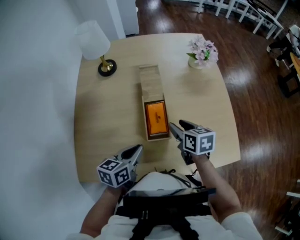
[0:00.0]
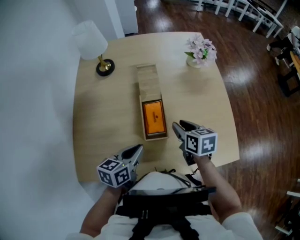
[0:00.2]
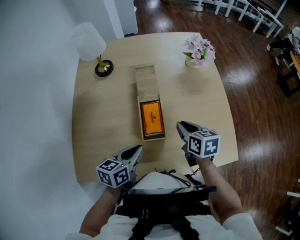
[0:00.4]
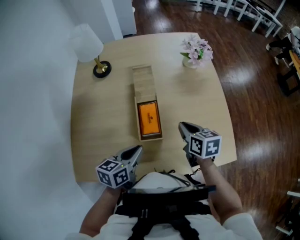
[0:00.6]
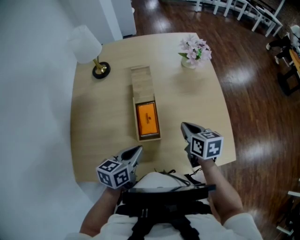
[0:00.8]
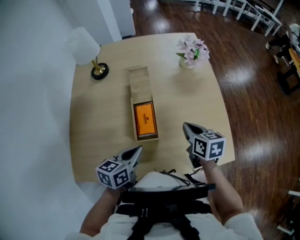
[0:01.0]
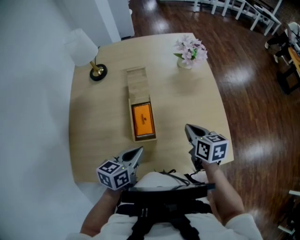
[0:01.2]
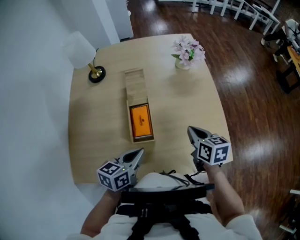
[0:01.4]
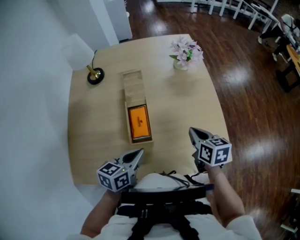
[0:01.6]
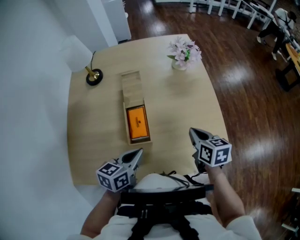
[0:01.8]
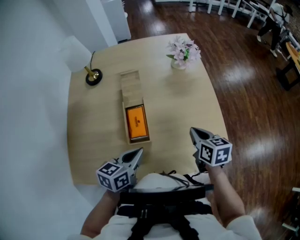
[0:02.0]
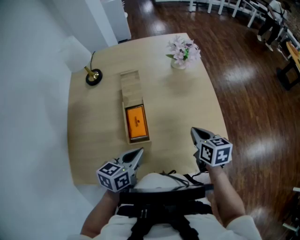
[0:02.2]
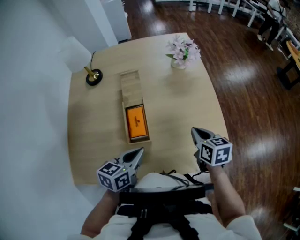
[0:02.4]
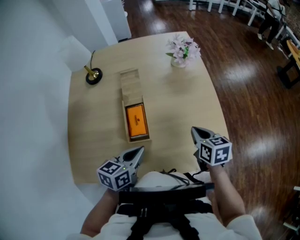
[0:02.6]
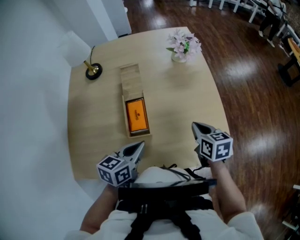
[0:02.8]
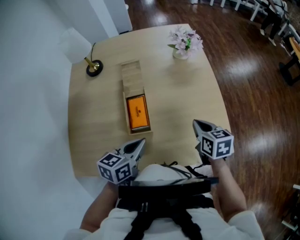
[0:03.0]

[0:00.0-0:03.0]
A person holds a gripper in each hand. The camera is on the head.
0:00.0 to 0:01.6: The left gripper goes about 10 cm to the right. Meanwhile the right gripper moves to the right, about 15 cm, and closes.
0:01.6 to 0:03.0: The grippers make only small movements.

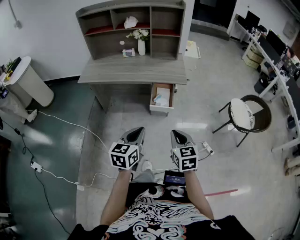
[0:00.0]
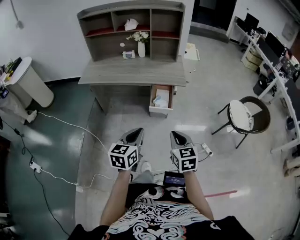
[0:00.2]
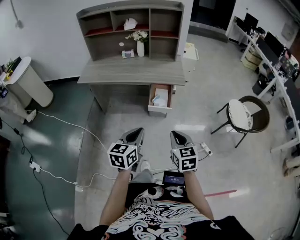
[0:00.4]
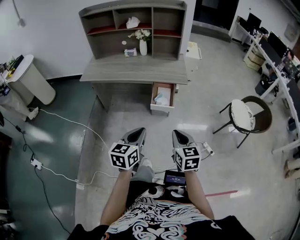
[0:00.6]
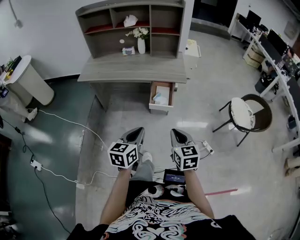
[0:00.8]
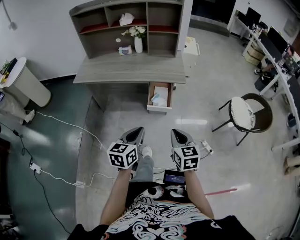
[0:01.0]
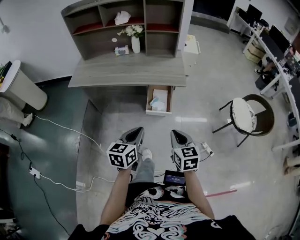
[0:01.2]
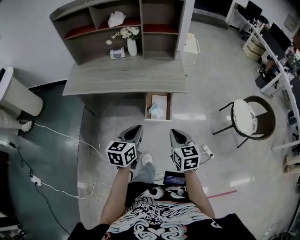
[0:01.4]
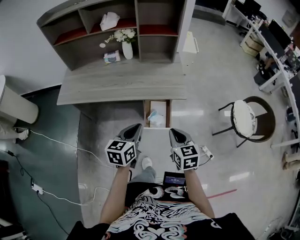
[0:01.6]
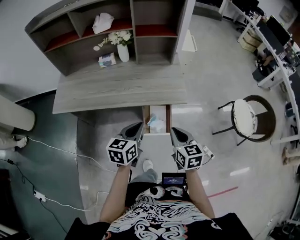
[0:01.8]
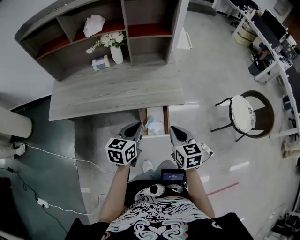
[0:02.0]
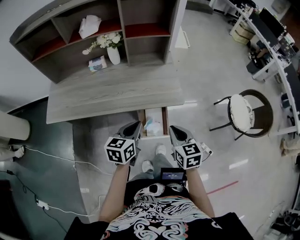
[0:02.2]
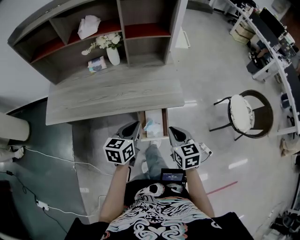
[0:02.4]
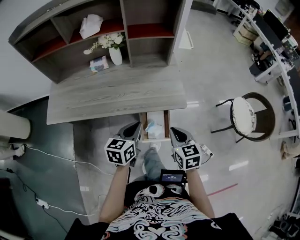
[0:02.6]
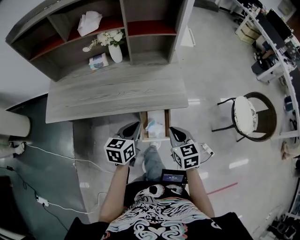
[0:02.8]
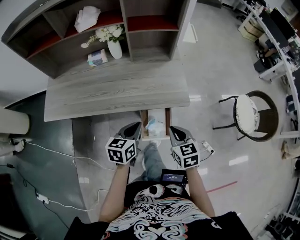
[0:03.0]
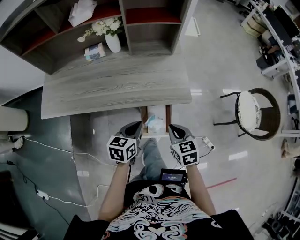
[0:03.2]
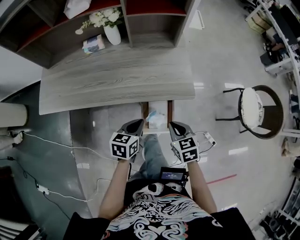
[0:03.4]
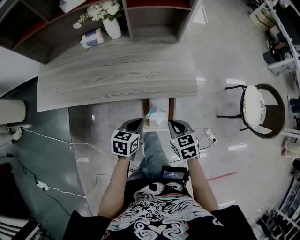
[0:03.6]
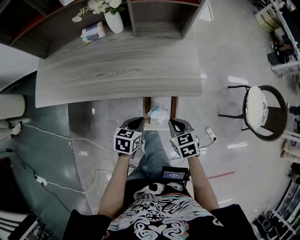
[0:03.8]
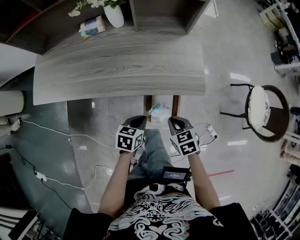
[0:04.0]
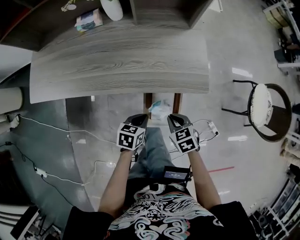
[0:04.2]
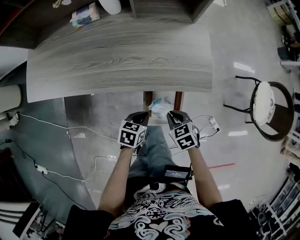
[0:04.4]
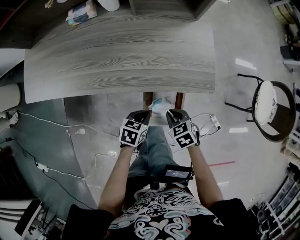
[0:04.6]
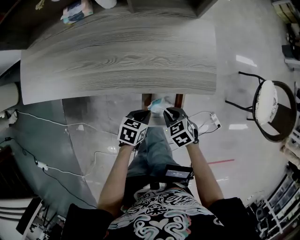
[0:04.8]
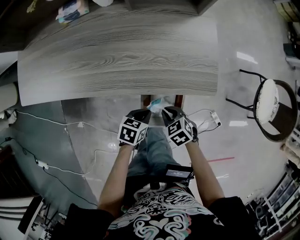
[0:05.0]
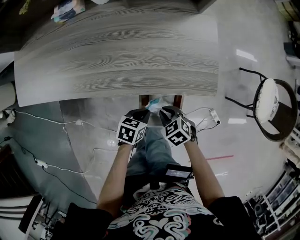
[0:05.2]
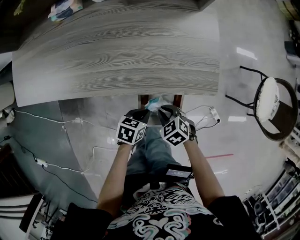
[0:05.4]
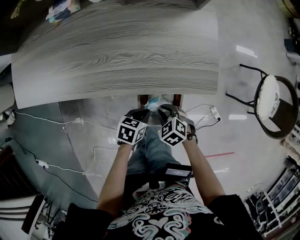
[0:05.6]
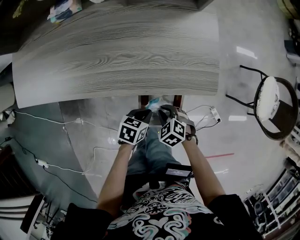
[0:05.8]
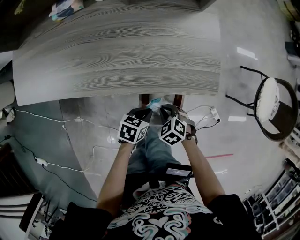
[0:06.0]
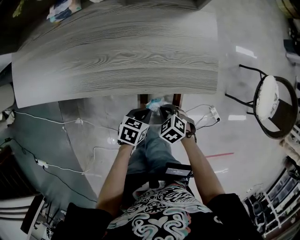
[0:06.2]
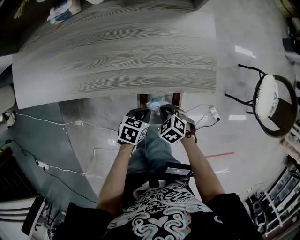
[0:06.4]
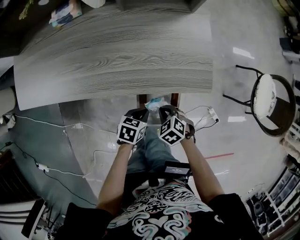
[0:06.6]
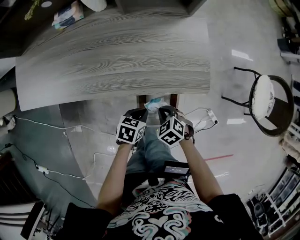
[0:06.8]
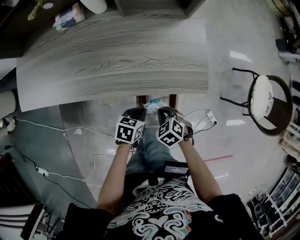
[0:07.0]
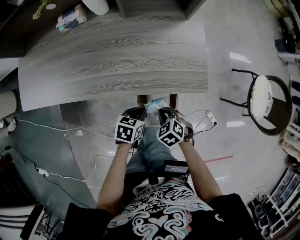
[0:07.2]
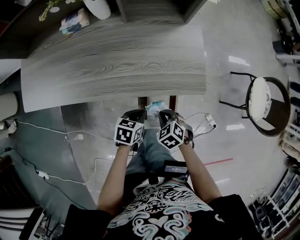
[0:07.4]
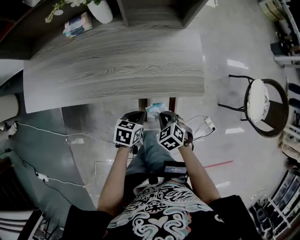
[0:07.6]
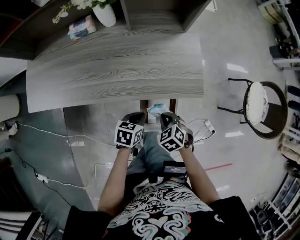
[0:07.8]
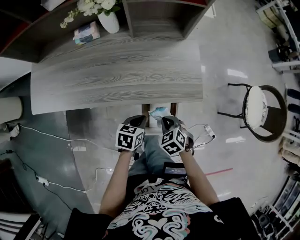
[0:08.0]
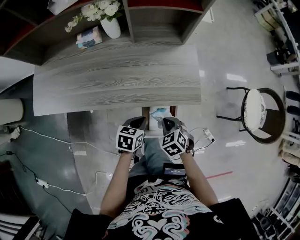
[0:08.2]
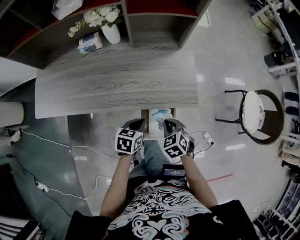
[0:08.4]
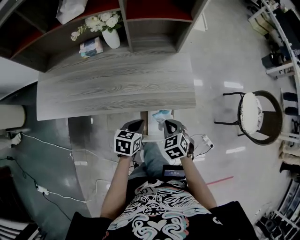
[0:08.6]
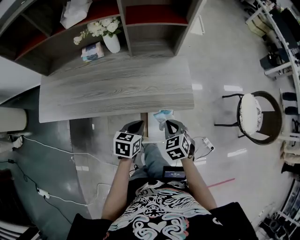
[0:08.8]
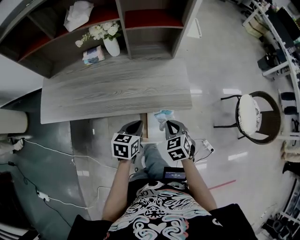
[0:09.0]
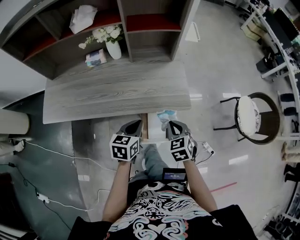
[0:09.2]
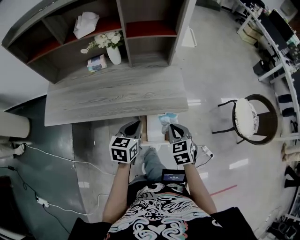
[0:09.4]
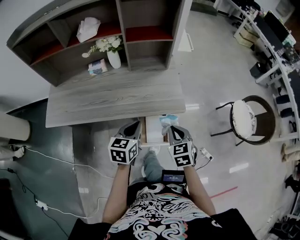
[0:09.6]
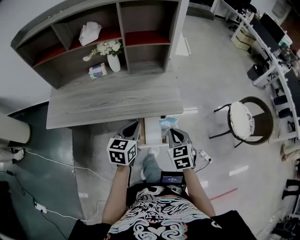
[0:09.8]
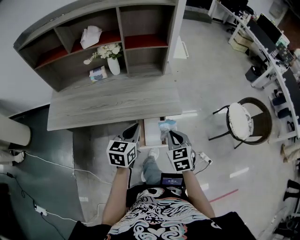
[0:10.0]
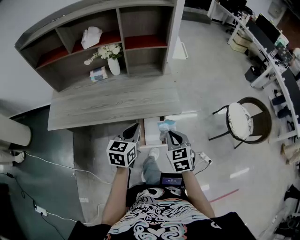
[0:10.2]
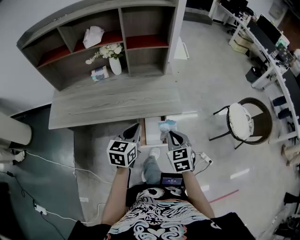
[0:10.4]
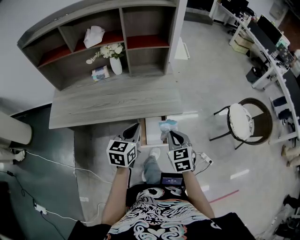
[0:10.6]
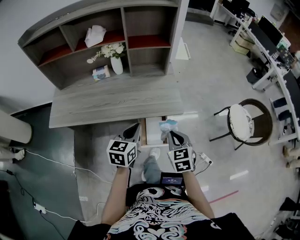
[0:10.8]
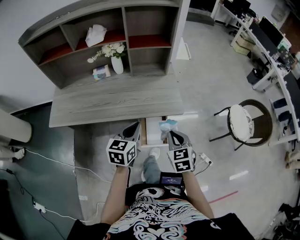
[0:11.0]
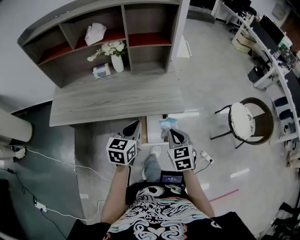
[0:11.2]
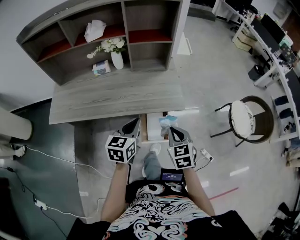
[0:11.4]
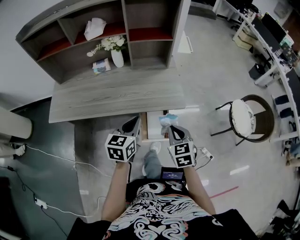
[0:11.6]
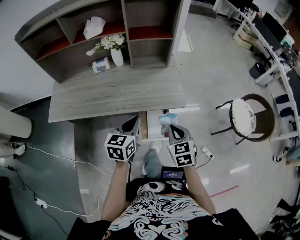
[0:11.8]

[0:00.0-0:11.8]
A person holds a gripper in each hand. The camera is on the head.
0:00.0 to 0:01.4: Both grippers travel together forward, about 20 cm.
0:01.4 to 0:03.0: The grippers both shift forward by about 20 cm.
0:03.0 to 0:04.4: The grippers both shift downward by some 20 cm. The right gripper changes its angle by some 30 degrees; the left gripper swivels roughly 30 degrees.
0:04.4 to 0:06.0: The right gripper heads downward, covering about 10 cm, and rotates roughly 20 degrees, while the left gripper ends up some 5 cm from where it was.
0:06.0 to 0:07.4: The grippers both shift upward by some 5 cm.
0:07.4 to 0:08.8: Both grippers travel together upward, about 15 cm. The right gripper changes its angle by some 20 degrees.
0:08.8 to 0:10.4: The right gripper heads upward and backward, covering about 15 cm, and changes its angle by approximately 20 degrees, while the left gripper heads upward, covering some 15 cm, and changes its angle by approximately 20 degrees.
0:10.4 to 0:11.8: The grippers stay close to where they were, moving slightly.

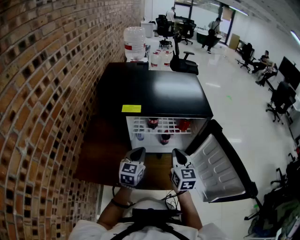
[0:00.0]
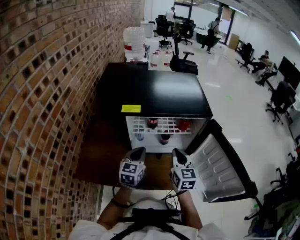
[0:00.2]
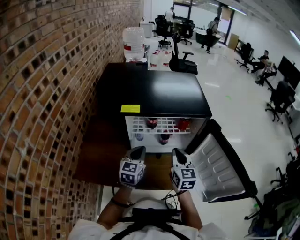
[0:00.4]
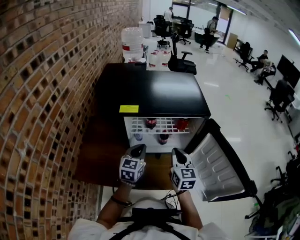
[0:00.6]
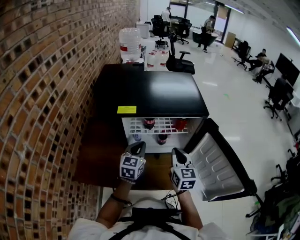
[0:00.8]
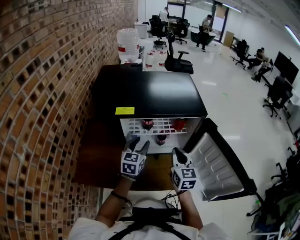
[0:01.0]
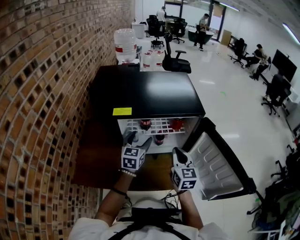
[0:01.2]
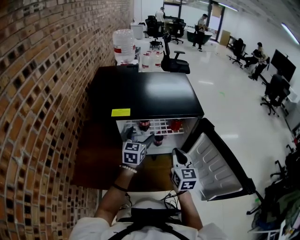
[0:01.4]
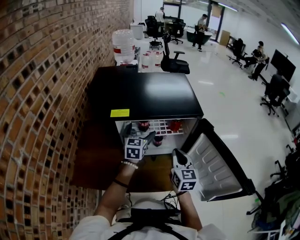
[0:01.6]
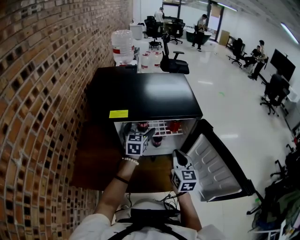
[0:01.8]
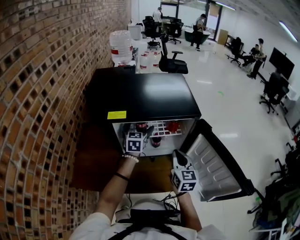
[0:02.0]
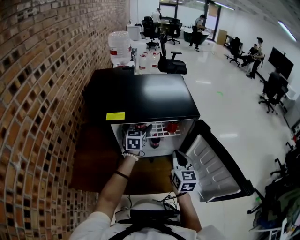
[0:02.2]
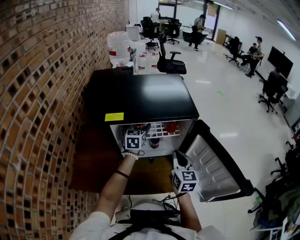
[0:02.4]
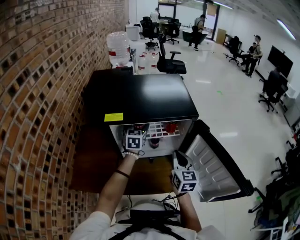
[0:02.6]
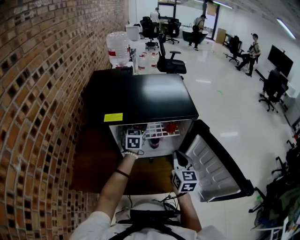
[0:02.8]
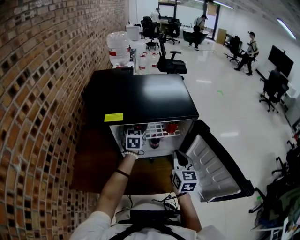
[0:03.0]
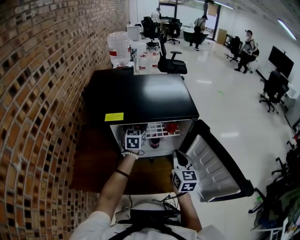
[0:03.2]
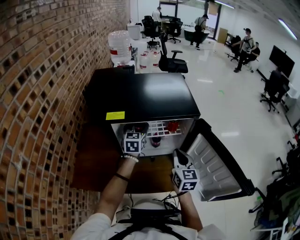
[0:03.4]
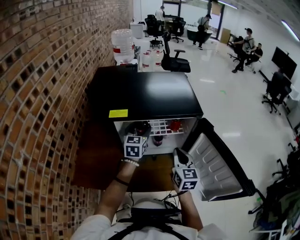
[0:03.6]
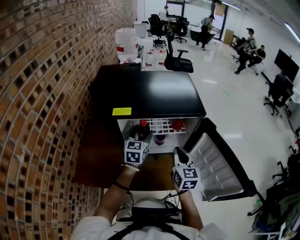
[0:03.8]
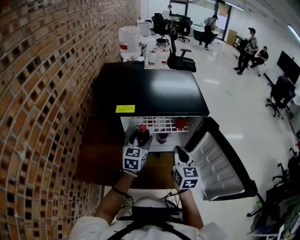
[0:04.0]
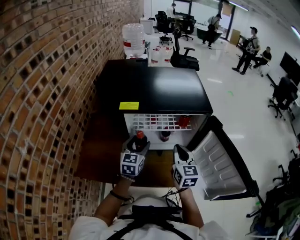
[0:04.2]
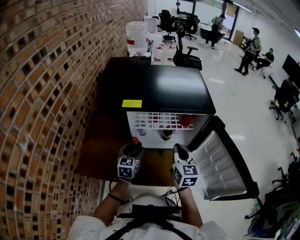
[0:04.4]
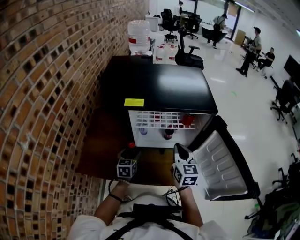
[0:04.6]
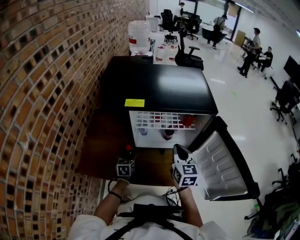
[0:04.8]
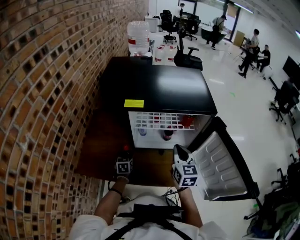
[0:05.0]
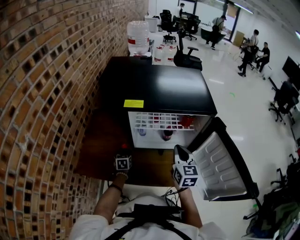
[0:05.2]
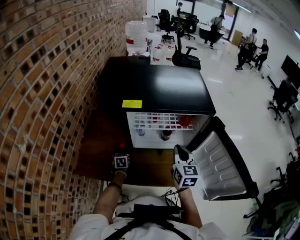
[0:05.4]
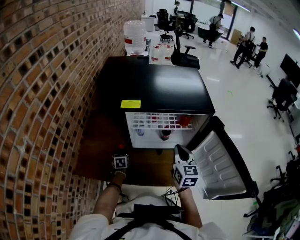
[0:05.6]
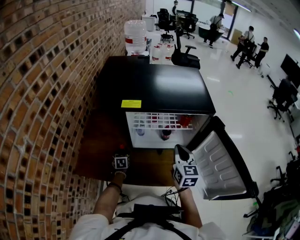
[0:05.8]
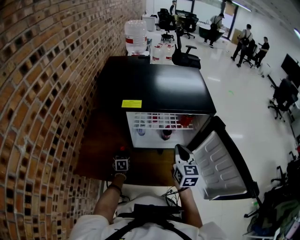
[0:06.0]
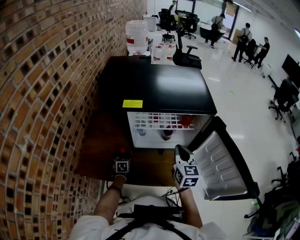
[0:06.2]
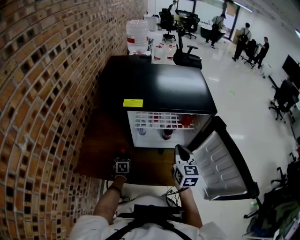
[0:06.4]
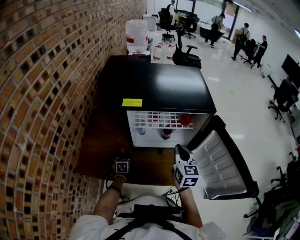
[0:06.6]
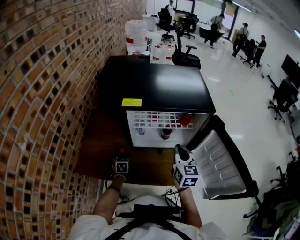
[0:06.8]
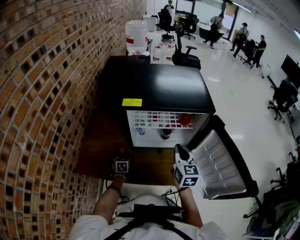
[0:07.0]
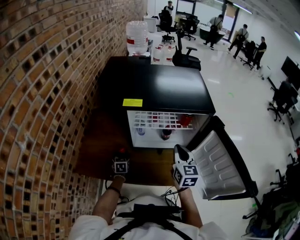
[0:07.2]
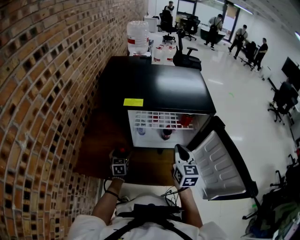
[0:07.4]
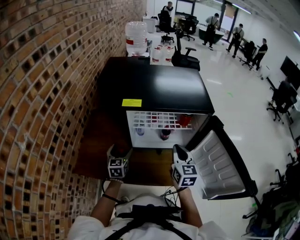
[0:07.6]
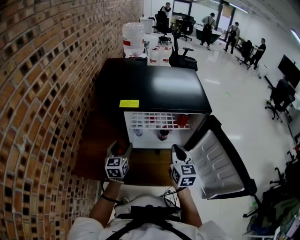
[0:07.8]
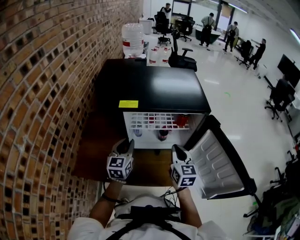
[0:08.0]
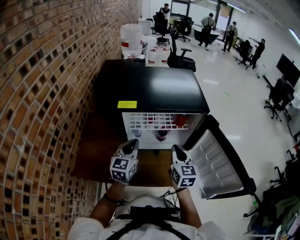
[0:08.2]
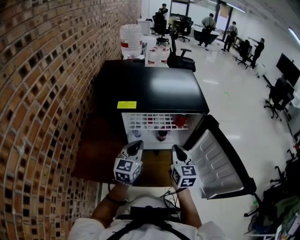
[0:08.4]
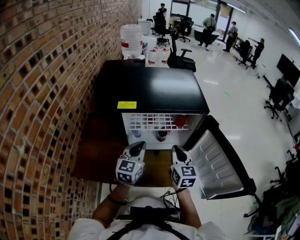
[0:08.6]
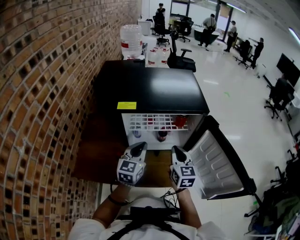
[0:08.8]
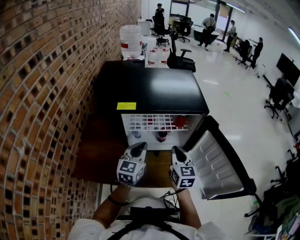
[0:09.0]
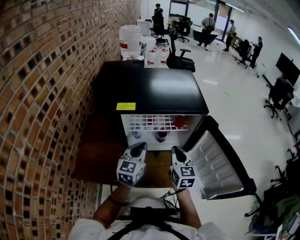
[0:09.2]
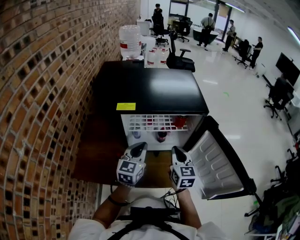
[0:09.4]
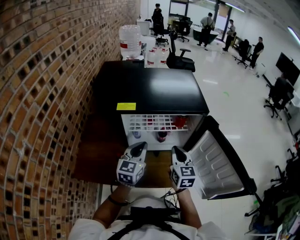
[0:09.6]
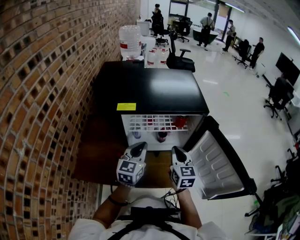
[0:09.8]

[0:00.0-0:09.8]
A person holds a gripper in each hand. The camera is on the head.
0:00.0 to 0:01.4: The left gripper heads forward, covering approximately 10 cm, and opens.
0:01.4 to 0:02.8: The left gripper shifts some 10 cm forward.
0:02.8 to 0:04.2: The right gripper shifts approximately 5 cm to the left. Meanwhile the left gripper moves backward, some 15 cm.
0:04.2 to 0:05.6: The left gripper travels downward and to the left by roughly 30 cm, and turns by some 30 degrees.
0:05.6 to 0:07.0: The grippers stay close to where they were, moving slightly.
0:07.0 to 0:08.4: The left gripper travels upward and to the right by about 35 cm, tilts its fingers about 30 degrees upward, and closes its fingers.
0:08.4 to 0:09.8: The grippers stay close to where they were, moving slightly.
